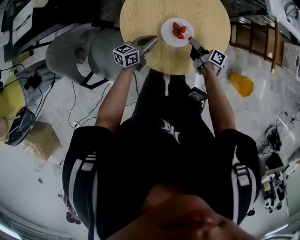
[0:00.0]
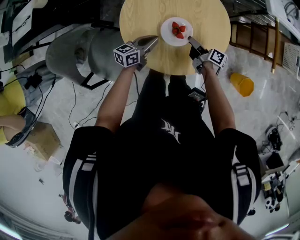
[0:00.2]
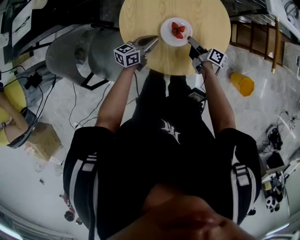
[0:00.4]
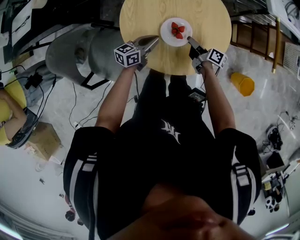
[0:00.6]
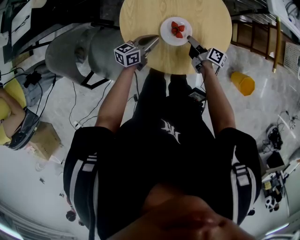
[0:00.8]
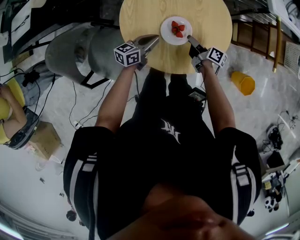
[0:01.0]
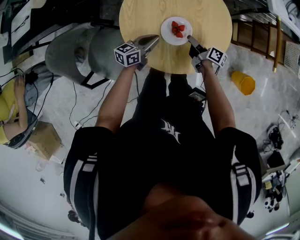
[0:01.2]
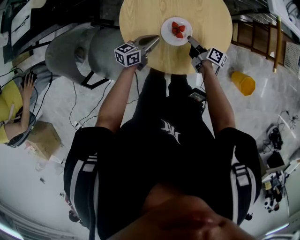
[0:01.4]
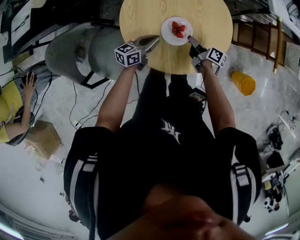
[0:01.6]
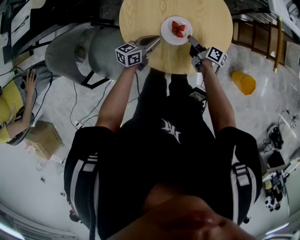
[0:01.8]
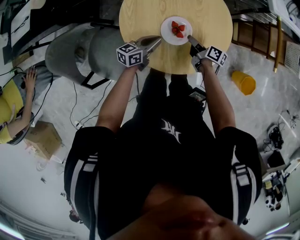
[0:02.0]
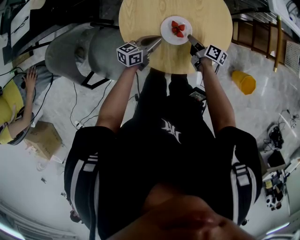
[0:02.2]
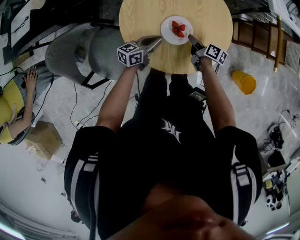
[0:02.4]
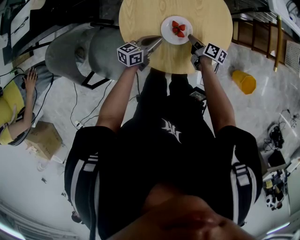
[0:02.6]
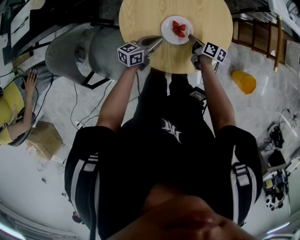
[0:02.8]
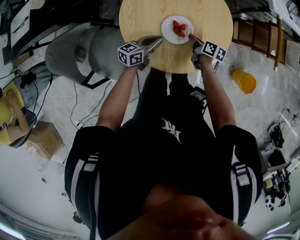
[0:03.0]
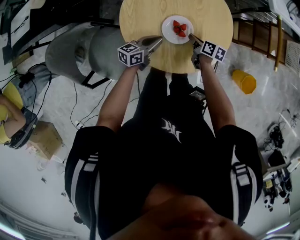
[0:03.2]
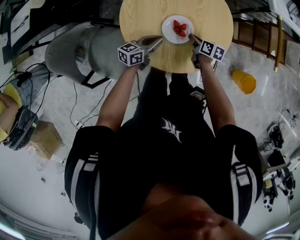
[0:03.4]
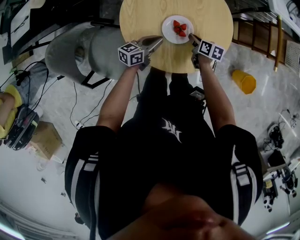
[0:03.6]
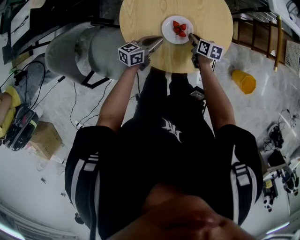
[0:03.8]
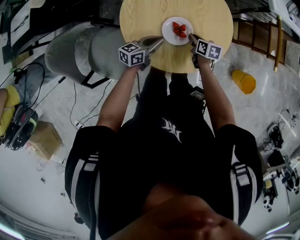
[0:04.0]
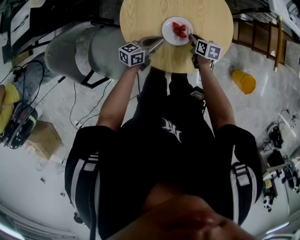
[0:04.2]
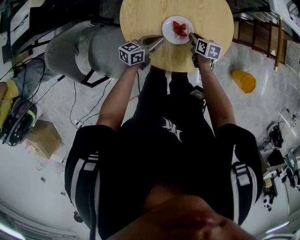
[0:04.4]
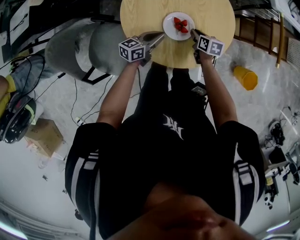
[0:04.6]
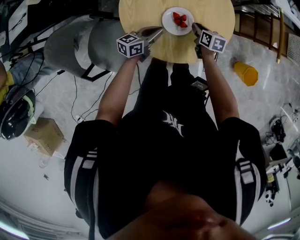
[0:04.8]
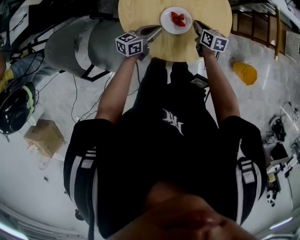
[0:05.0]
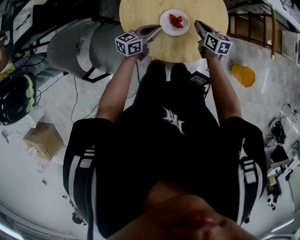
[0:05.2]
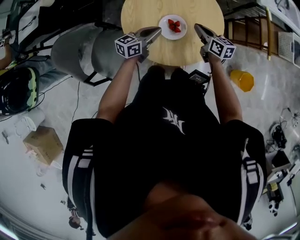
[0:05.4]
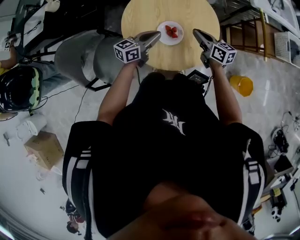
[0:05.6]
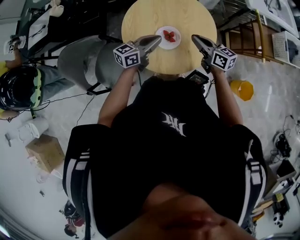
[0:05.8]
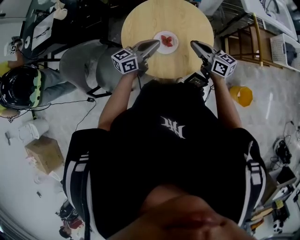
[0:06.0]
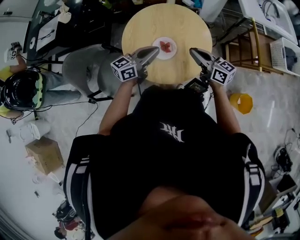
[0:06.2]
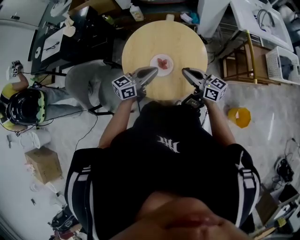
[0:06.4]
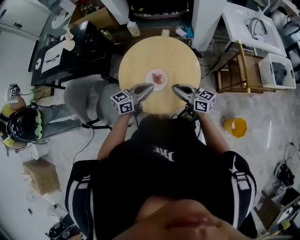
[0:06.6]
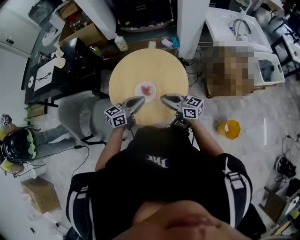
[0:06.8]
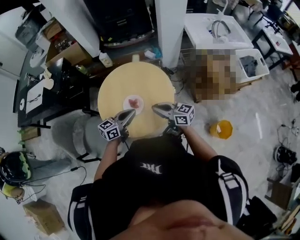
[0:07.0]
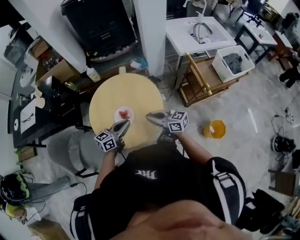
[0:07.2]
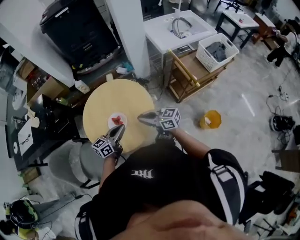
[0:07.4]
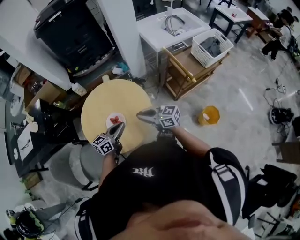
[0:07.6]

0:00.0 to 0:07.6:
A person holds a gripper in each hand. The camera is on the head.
0:04.6 to 0:06.0: The left gripper goes approximately 20 cm upward.
0:06.0 to 0:07.6: The left gripper moves roughly 10 cm.

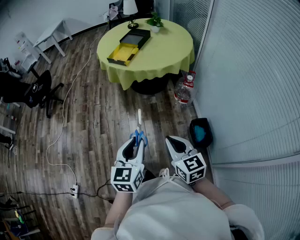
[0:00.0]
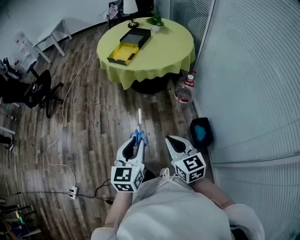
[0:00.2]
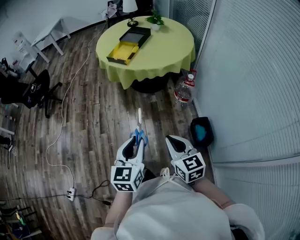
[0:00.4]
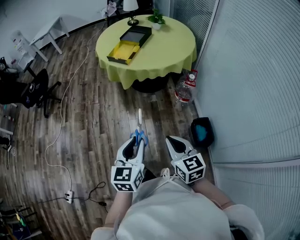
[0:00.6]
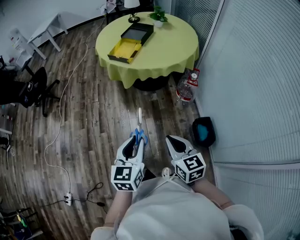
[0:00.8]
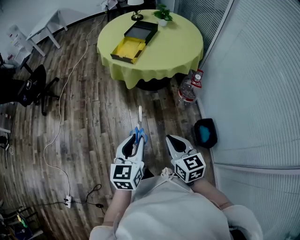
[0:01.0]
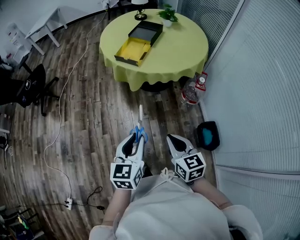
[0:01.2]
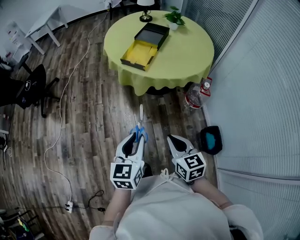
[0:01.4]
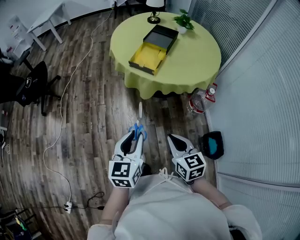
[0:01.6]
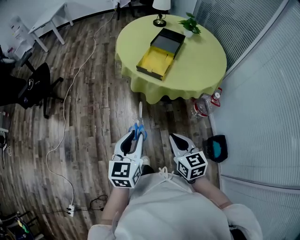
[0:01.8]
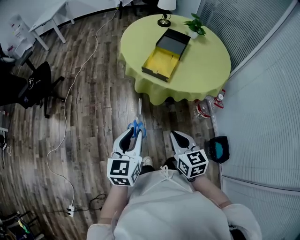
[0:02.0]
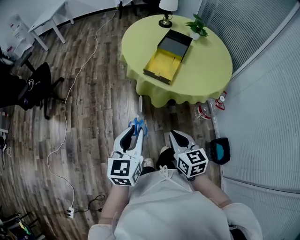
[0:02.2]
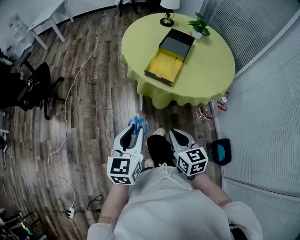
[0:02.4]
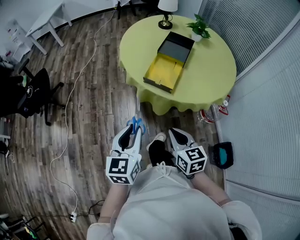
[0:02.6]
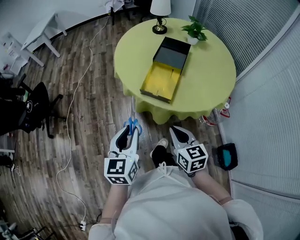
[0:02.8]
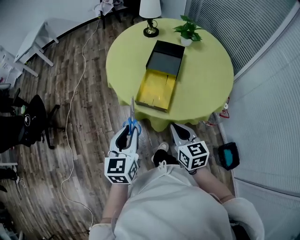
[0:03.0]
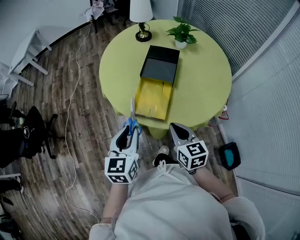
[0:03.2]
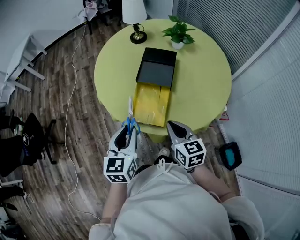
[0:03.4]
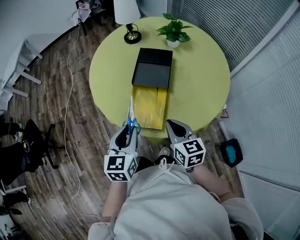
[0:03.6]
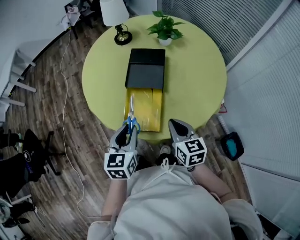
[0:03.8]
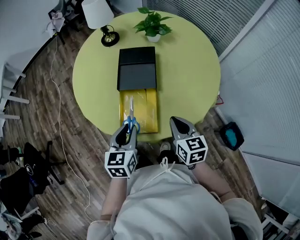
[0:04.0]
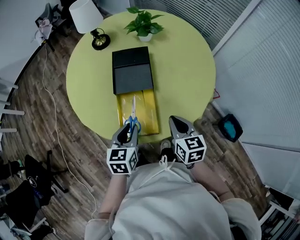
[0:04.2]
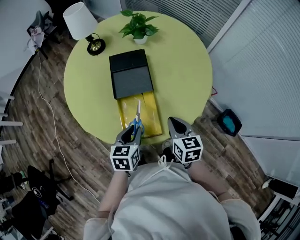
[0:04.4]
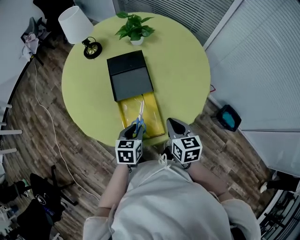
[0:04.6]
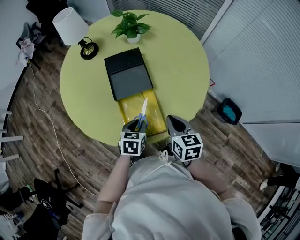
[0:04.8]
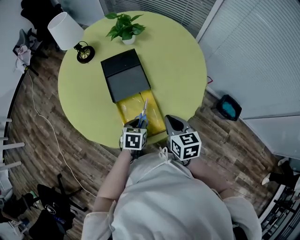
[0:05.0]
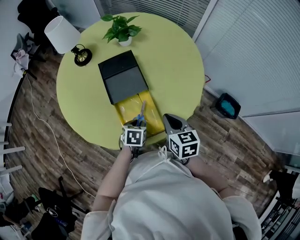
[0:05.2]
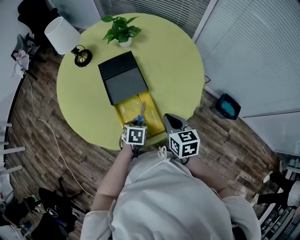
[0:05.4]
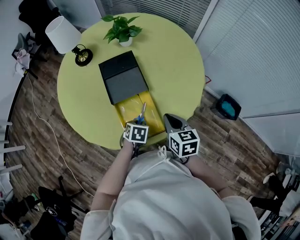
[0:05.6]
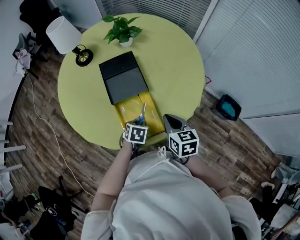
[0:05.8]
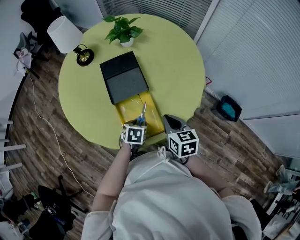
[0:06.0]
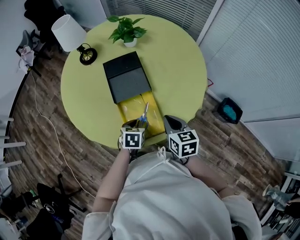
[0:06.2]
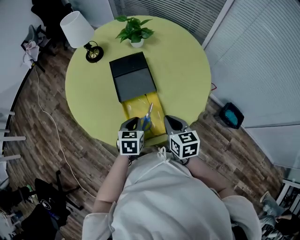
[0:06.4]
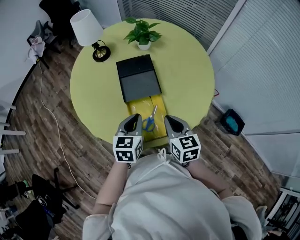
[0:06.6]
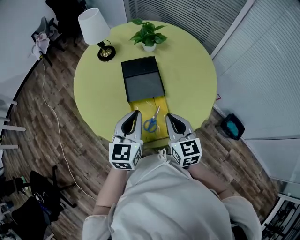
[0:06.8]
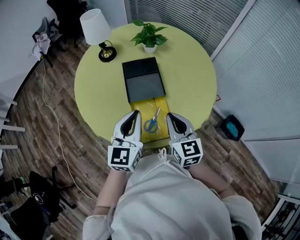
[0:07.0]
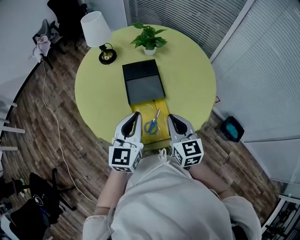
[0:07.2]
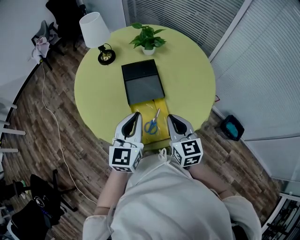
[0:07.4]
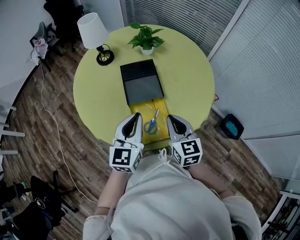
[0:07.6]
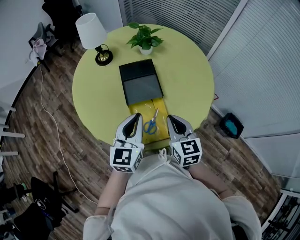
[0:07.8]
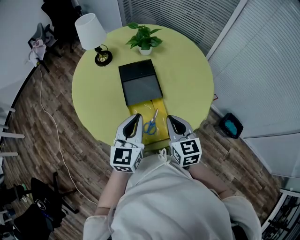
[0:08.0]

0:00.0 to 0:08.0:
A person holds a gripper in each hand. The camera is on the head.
0:00.0 to 0:01.6: Both grippers travel together forward and to the left, about 35 cm.
0:01.6 to 0:03.2: Both grippers travel together forward, about 40 cm.
0:03.2 to 0:04.8: The left gripper ends up about 30 cm from where it was, and angles its fingers downward, by about 30 degrees. The right gripper moves roughly 15 cm, and changes its angle by some 40 degrees.
0:06.4 to 0:08.0: The right gripper heads upward, covering some 5 cm, while the left gripper heads upward, covering about 15 cm, and points its fingers roughly 40 degrees further upward.

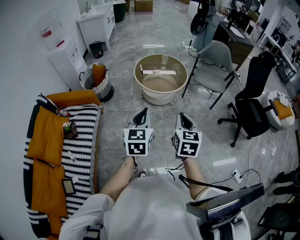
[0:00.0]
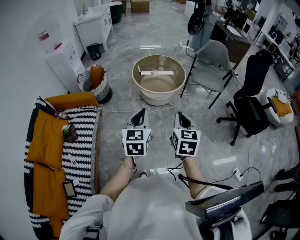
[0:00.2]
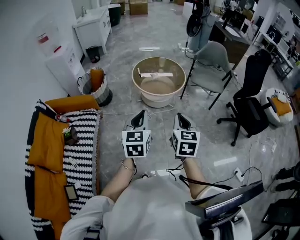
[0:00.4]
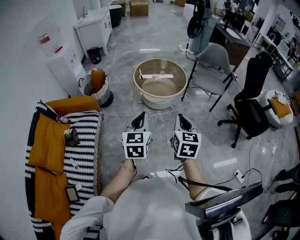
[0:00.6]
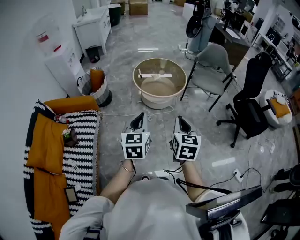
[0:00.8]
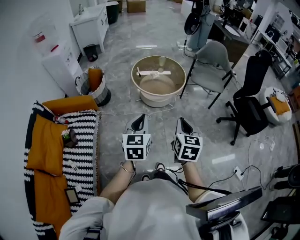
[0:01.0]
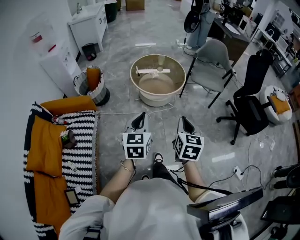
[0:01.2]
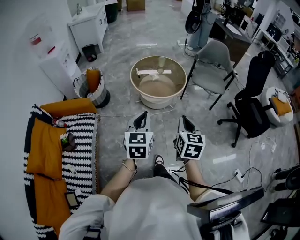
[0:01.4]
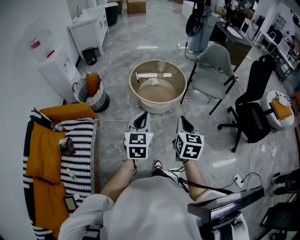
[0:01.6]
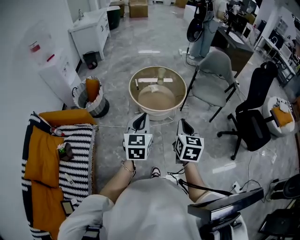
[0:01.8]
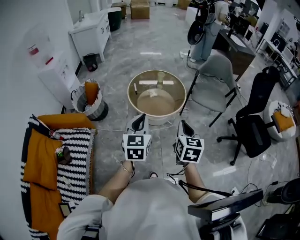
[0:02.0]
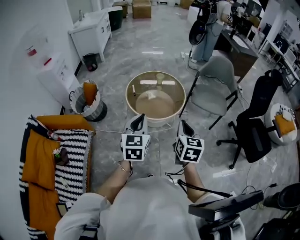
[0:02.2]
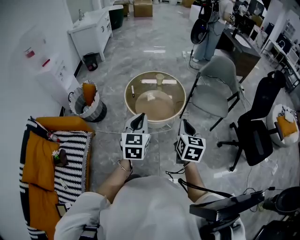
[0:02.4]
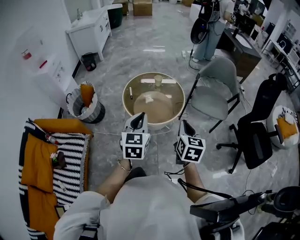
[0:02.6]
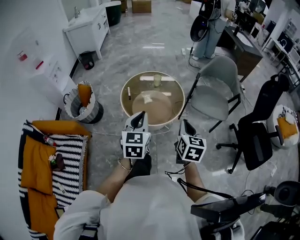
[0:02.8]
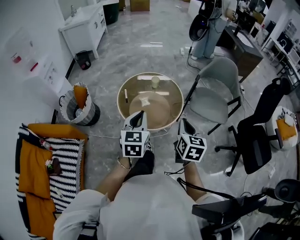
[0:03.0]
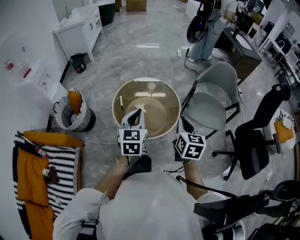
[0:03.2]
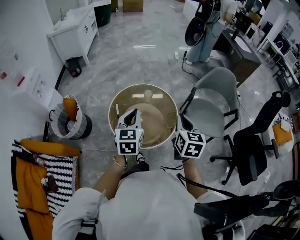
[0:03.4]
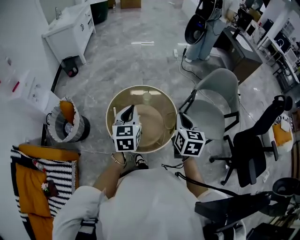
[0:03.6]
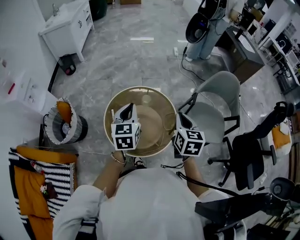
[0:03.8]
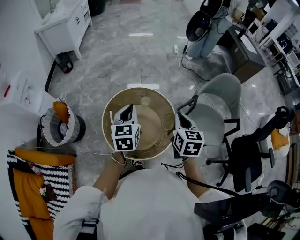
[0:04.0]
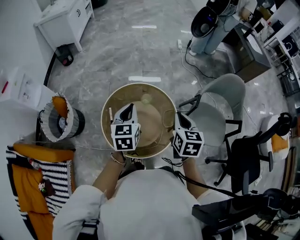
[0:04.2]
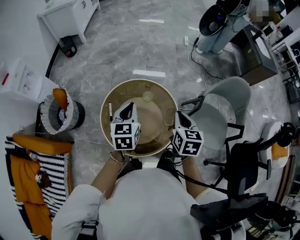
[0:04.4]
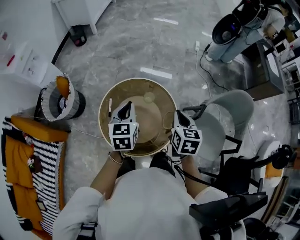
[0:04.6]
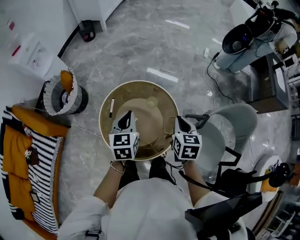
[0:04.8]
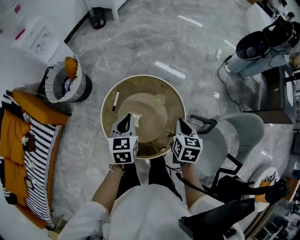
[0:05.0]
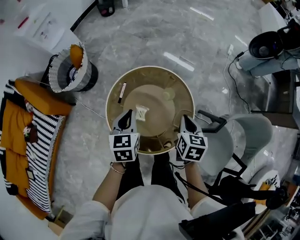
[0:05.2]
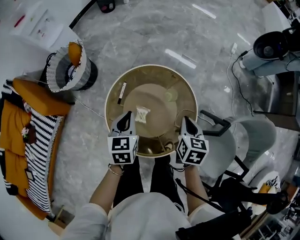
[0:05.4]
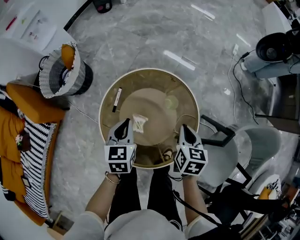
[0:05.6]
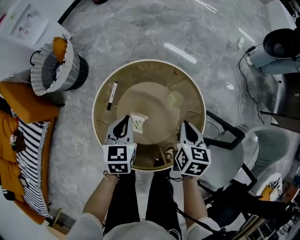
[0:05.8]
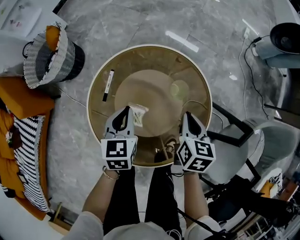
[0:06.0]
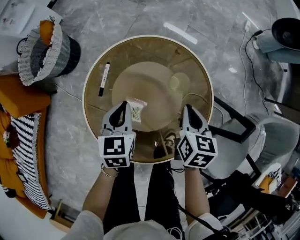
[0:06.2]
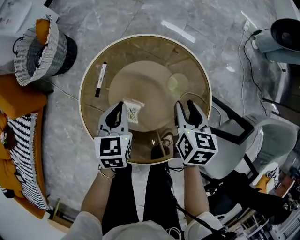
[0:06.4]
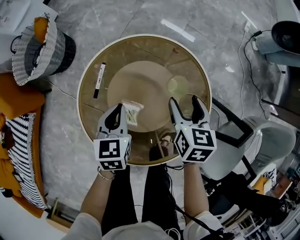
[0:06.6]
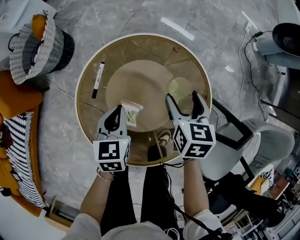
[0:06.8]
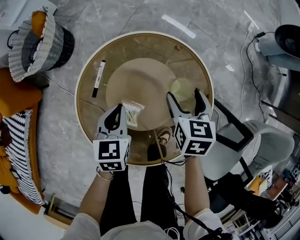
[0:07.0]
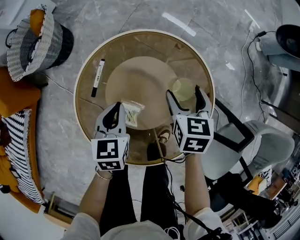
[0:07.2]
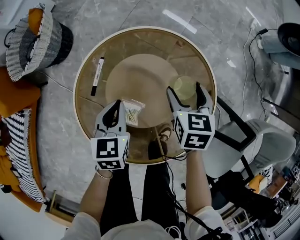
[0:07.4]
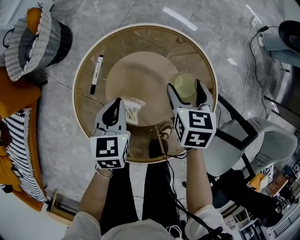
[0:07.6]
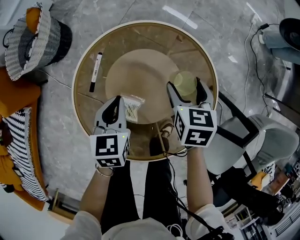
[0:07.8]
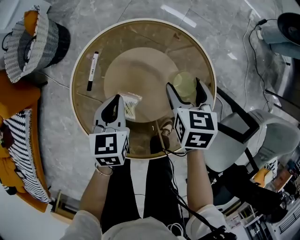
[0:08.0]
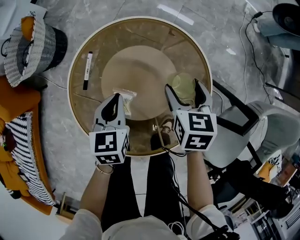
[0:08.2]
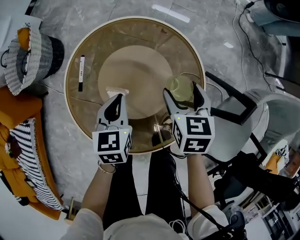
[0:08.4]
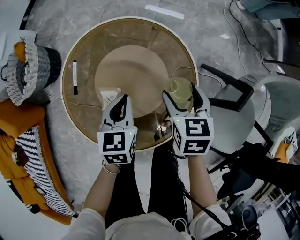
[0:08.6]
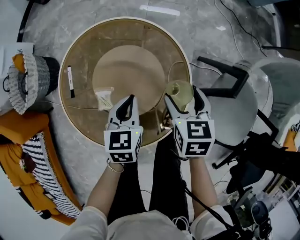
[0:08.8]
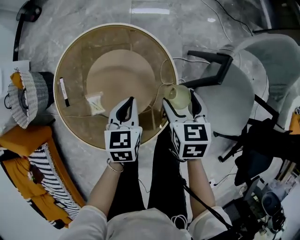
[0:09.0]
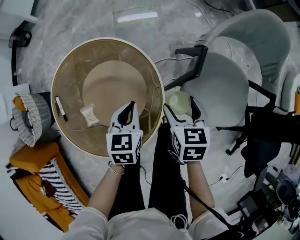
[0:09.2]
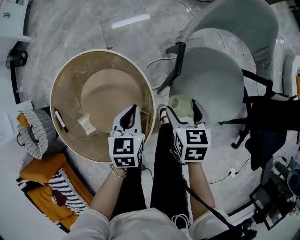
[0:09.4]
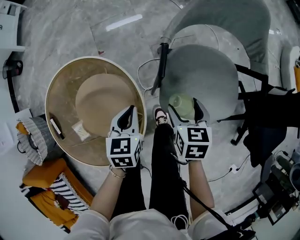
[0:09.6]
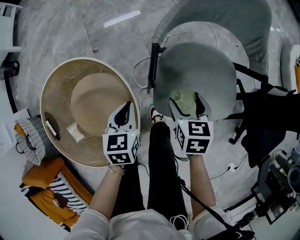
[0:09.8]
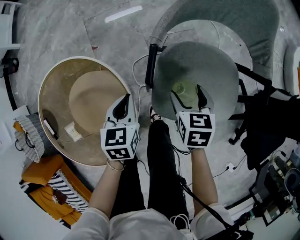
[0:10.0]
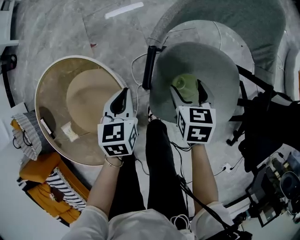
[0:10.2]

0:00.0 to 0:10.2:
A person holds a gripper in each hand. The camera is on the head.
0:00.0 to 0:01.4: Both grippers move forward, roughly 5 cm.
0:01.4 to 0:03.0: The grippers both shift forward by about 35 cm.
0:03.0 to 0:04.4: The grippers both shift forward by some 35 cm.
0:04.4 to 0:05.8: The right gripper shifts some 30 cm downward and forward, and turns by roughly 20 degrees. The left gripper travels downward by approximately 25 cm, and turns by some 20 degrees.
0:05.8 to 0:07.2: The right gripper moves forward and downward, approximately 10 cm, and opens up. Meanwhile the left gripper shifts about 10 cm downward.
0:07.2 to 0:08.8: The left gripper is displaced to the right by about 15 cm, and rotates some 20 degrees. Meanwhile the right gripper goes about 20 cm backward and to the right.
0:08.8 to 0:10.2: The left gripper is displaced to the right and forward by approximately 30 cm. The right gripper moves to the right, about 30 cm, and rotates roughly 30 degrees.
